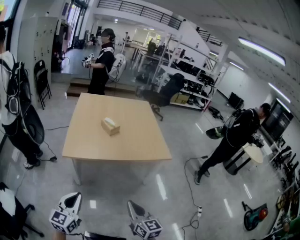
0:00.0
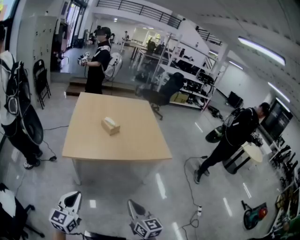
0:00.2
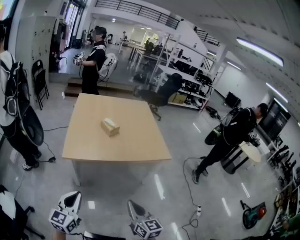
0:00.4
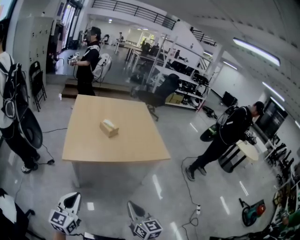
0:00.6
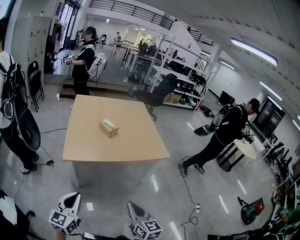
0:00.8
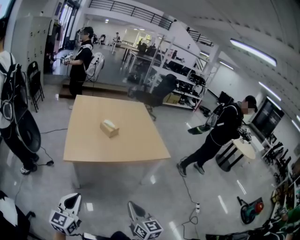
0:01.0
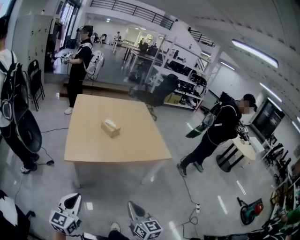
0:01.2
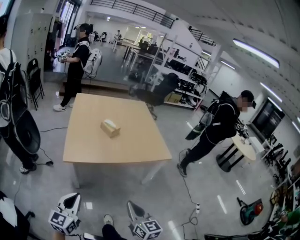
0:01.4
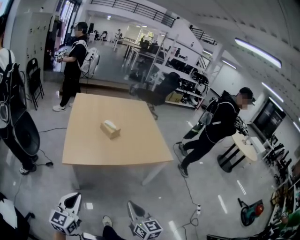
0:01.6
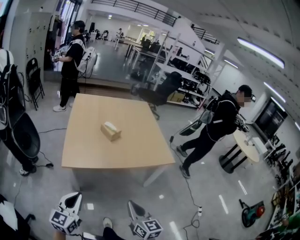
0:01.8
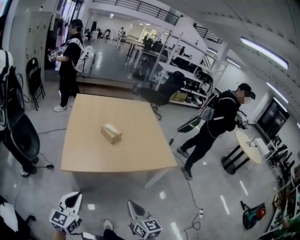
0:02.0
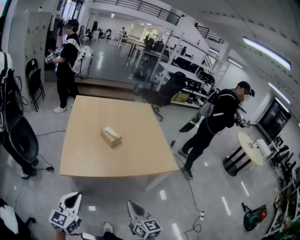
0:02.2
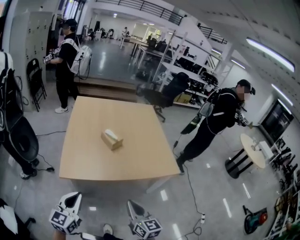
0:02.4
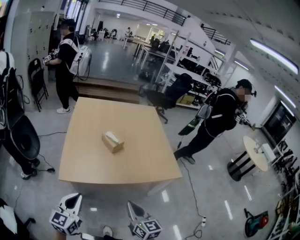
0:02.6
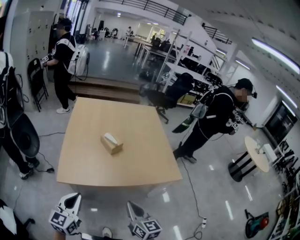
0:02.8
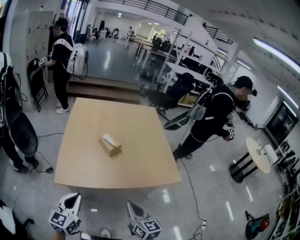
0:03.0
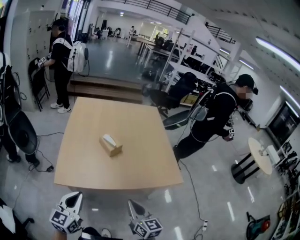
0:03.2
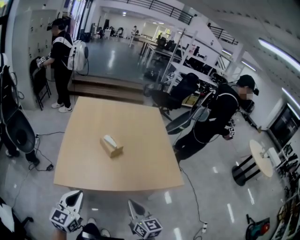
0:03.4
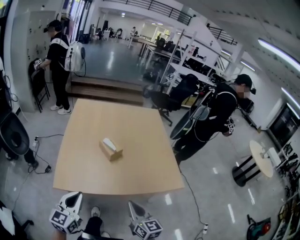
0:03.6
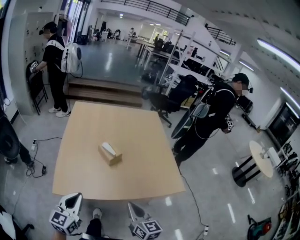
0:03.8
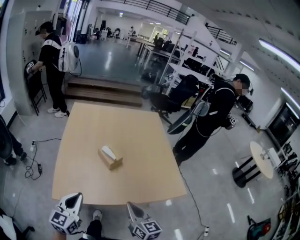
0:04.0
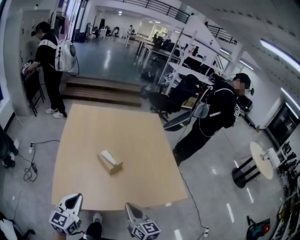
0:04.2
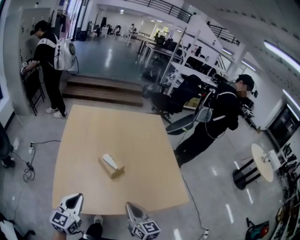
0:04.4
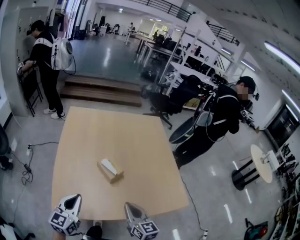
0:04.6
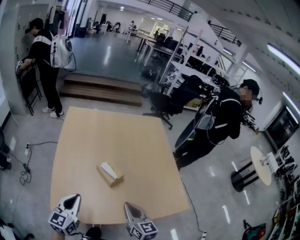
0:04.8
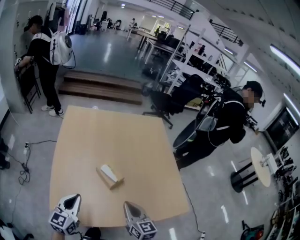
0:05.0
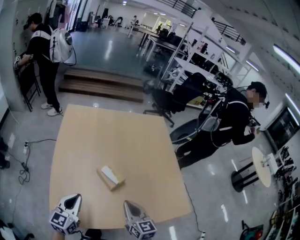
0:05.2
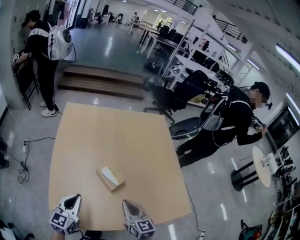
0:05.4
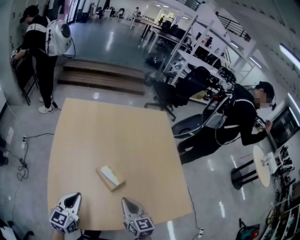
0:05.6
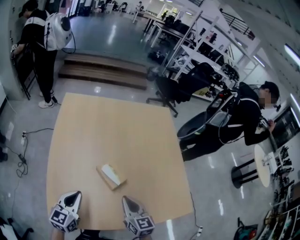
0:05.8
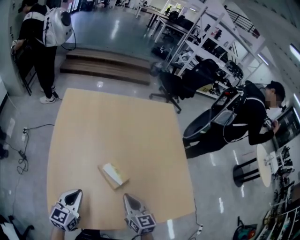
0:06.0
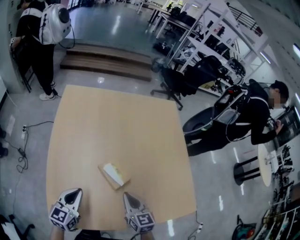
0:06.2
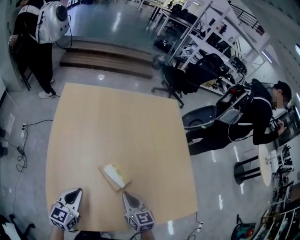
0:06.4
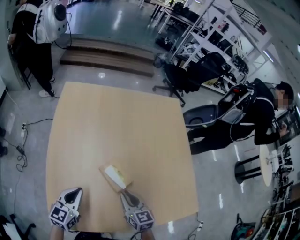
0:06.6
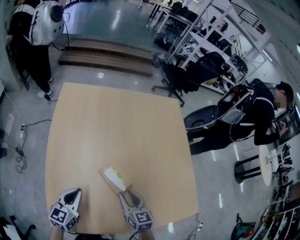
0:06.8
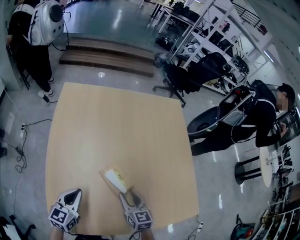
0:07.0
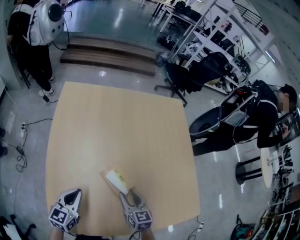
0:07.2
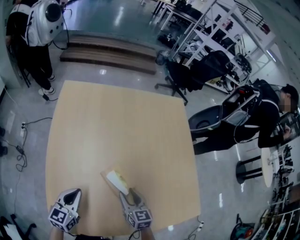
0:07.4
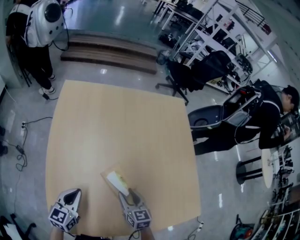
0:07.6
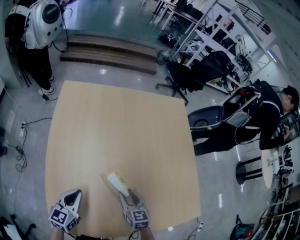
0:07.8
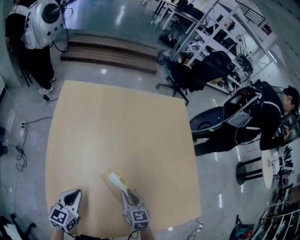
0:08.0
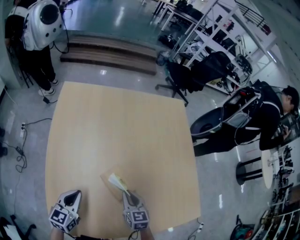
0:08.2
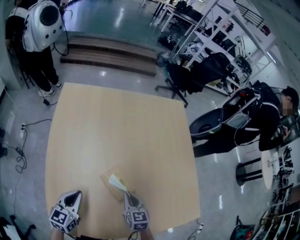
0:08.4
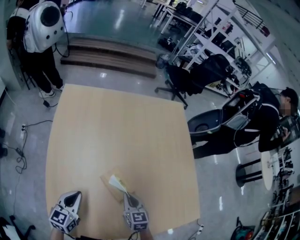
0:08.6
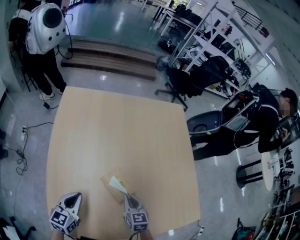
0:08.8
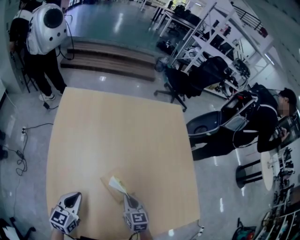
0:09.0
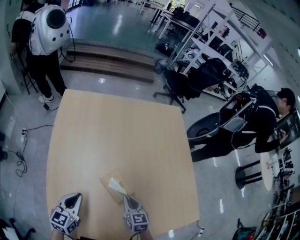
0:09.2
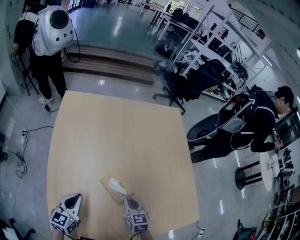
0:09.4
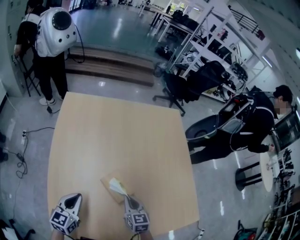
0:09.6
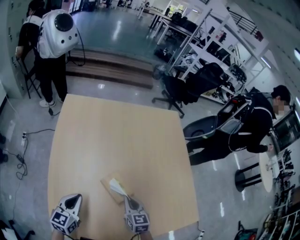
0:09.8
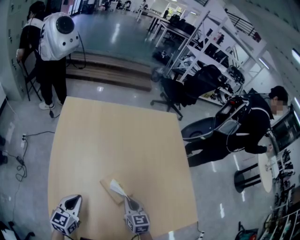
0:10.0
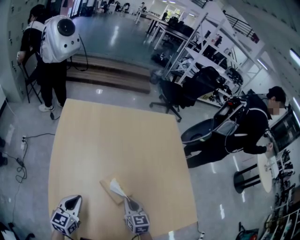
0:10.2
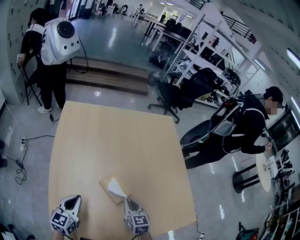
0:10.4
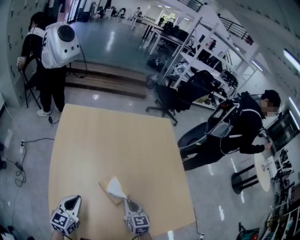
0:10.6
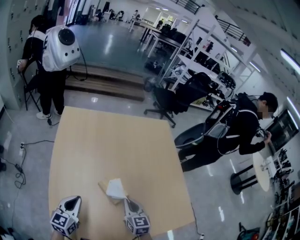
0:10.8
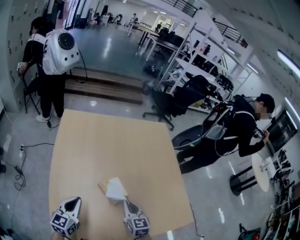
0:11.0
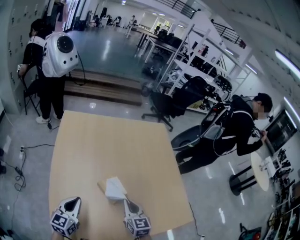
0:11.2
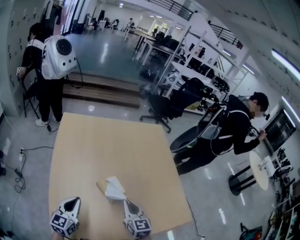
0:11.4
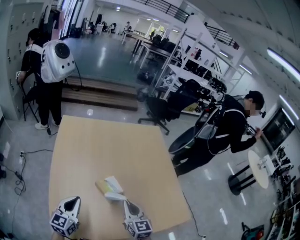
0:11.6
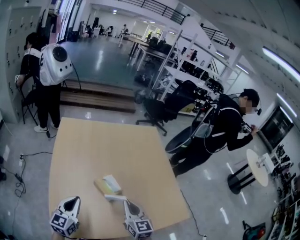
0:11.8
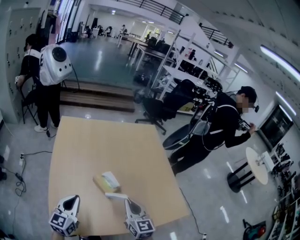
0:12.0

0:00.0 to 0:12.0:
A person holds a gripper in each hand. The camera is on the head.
0:00.0 to 0:01.6: The right gripper heads to the left, covering approximately 5 cm. Meanwhile the left gripper shifts approximately 10 cm to the left and forward.
0:01.6 to 0:03.0: Both grippers move forward, some 20 cm.
0:03.0 to 0:04.4: The two grippers go approximately 20 cm forward.
0:04.4 to 0:06.0: The left gripper heads forward and downward, covering roughly 20 cm, while the right gripper is displaced forward by about 20 cm.
0:06.0 to 0:07.6: Both grippers move downward and forward, approximately 10 cm. The right gripper opens its fingers.
0:07.6 to 0:09.0: The right gripper closes its fingers.
0:09.0 to 0:10.4: The grippers make only small movements.
0:10.4 to 0:12.0: The two grippers go some 15 cm upward and backward.

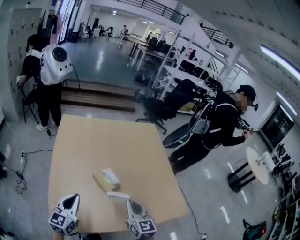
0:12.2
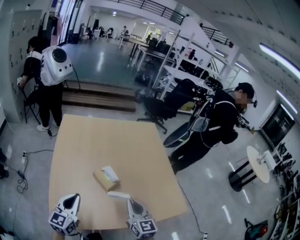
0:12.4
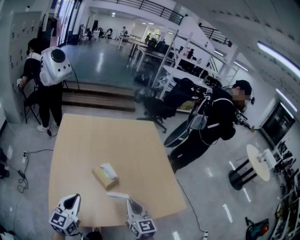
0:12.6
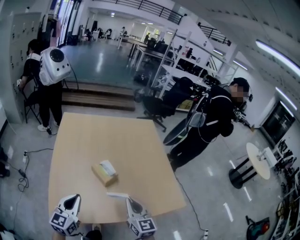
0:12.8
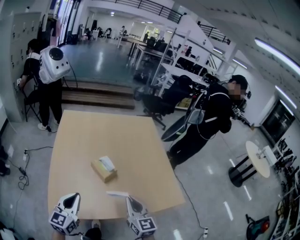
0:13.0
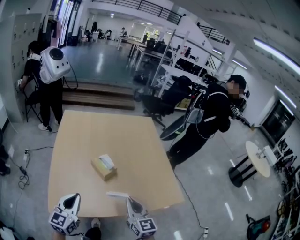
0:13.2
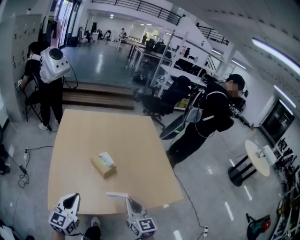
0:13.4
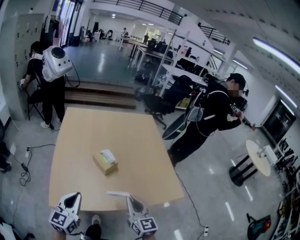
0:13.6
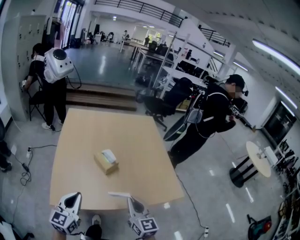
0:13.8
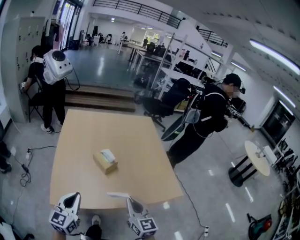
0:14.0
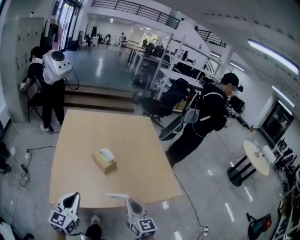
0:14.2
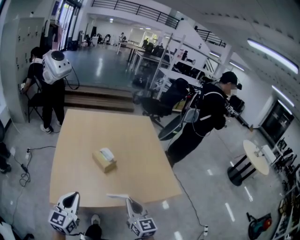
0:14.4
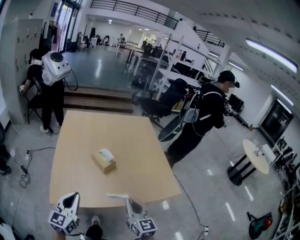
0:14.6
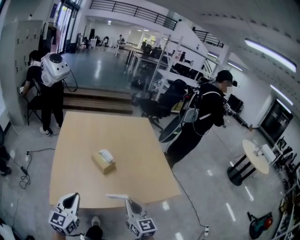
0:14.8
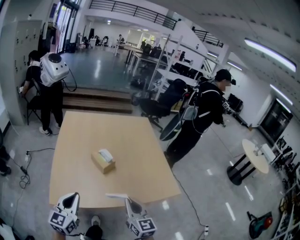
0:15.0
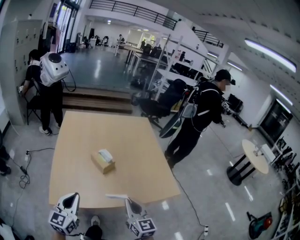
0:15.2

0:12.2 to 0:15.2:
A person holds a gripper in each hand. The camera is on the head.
0:12.2 to 0:13.8: The grippers both shift backward by about 15 cm.
0:13.8 to 0:15.2: The grippers stay close to where they were, moving slightly.

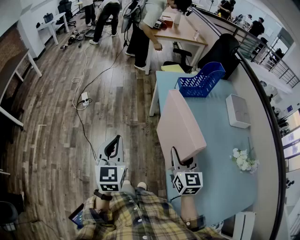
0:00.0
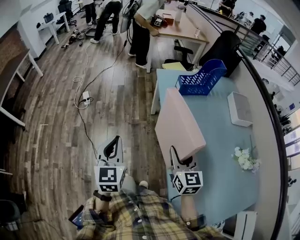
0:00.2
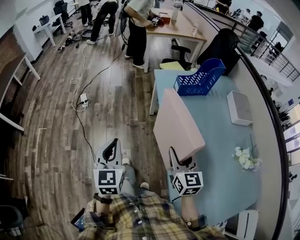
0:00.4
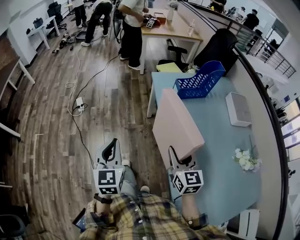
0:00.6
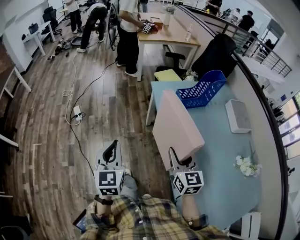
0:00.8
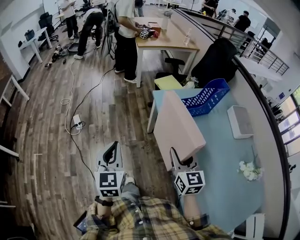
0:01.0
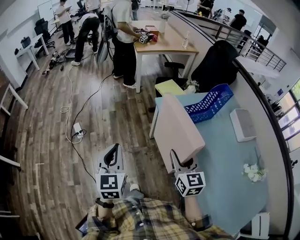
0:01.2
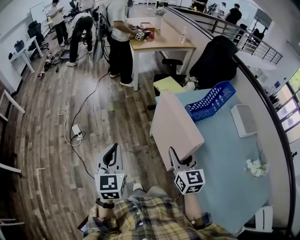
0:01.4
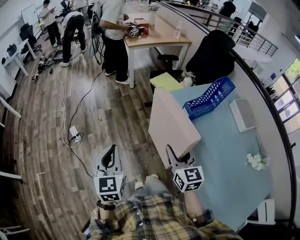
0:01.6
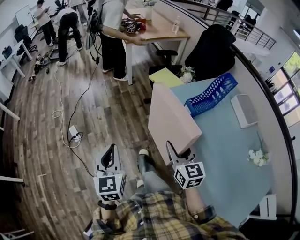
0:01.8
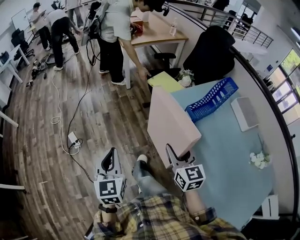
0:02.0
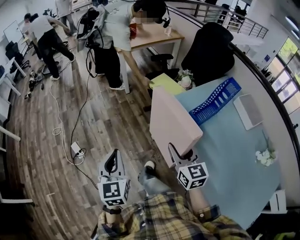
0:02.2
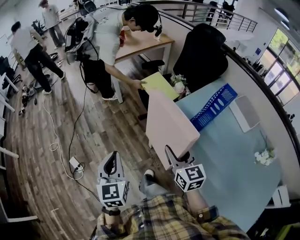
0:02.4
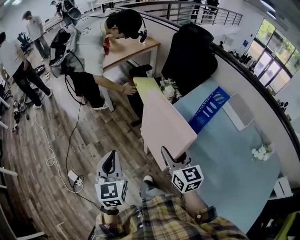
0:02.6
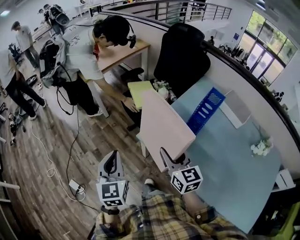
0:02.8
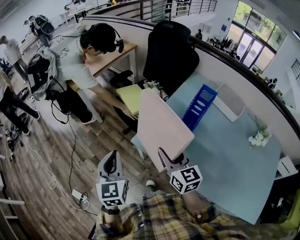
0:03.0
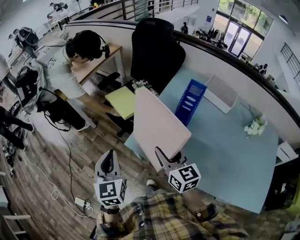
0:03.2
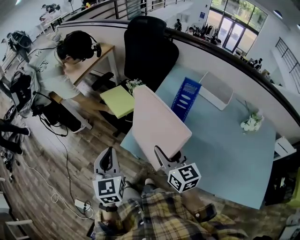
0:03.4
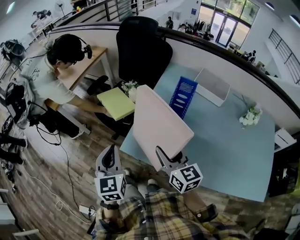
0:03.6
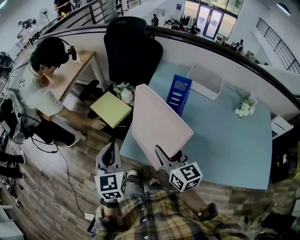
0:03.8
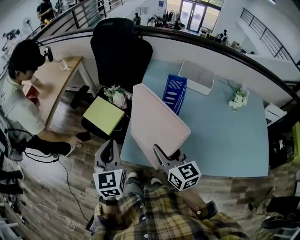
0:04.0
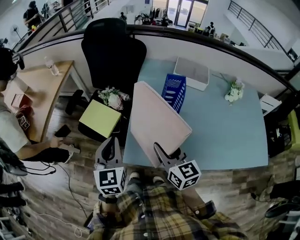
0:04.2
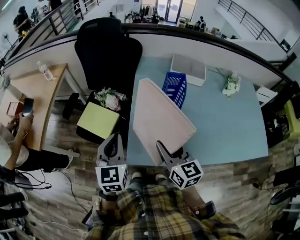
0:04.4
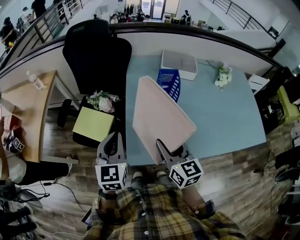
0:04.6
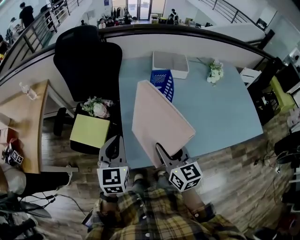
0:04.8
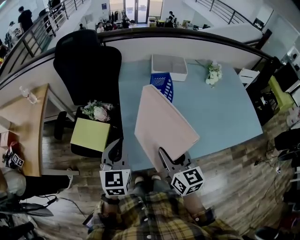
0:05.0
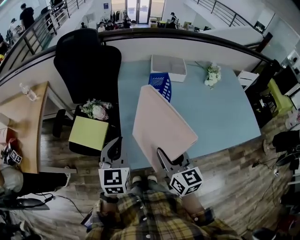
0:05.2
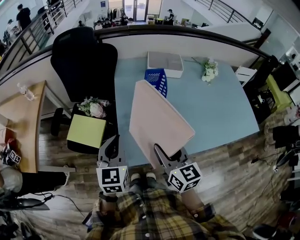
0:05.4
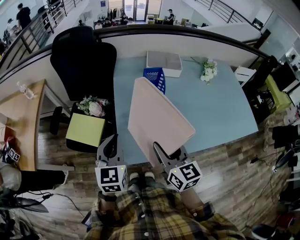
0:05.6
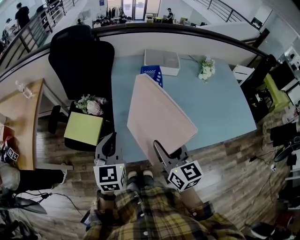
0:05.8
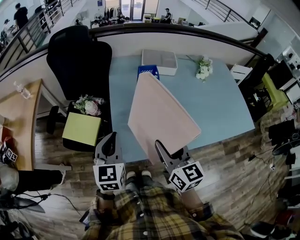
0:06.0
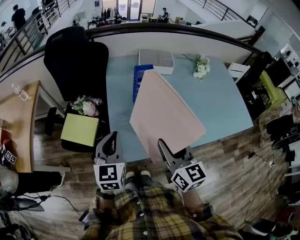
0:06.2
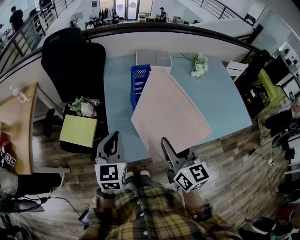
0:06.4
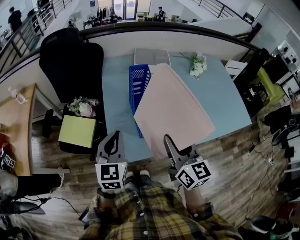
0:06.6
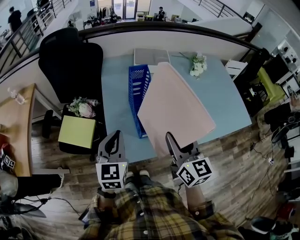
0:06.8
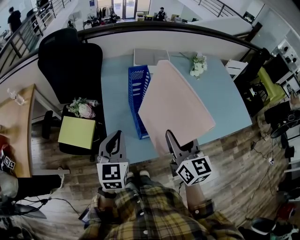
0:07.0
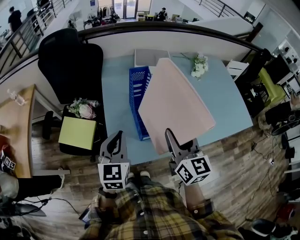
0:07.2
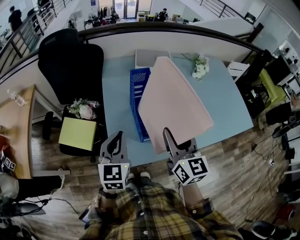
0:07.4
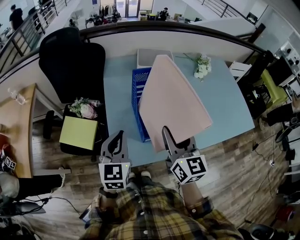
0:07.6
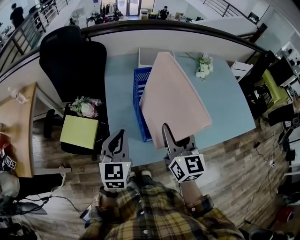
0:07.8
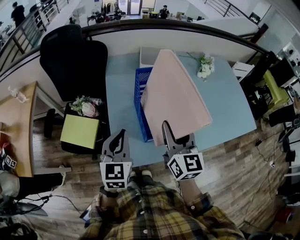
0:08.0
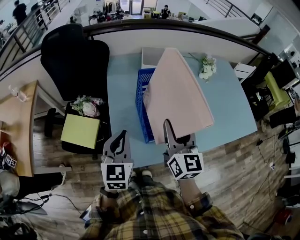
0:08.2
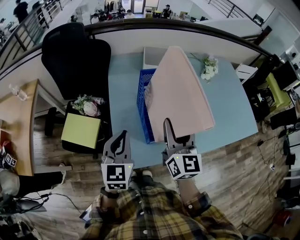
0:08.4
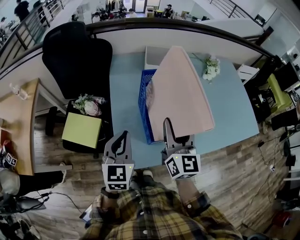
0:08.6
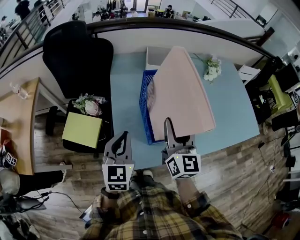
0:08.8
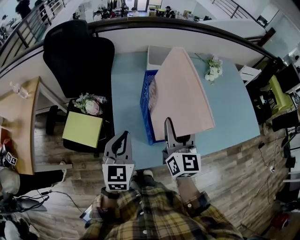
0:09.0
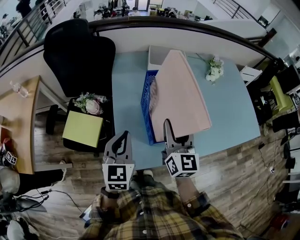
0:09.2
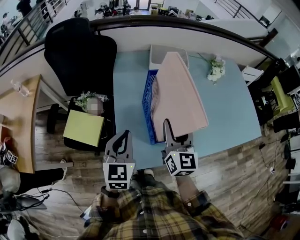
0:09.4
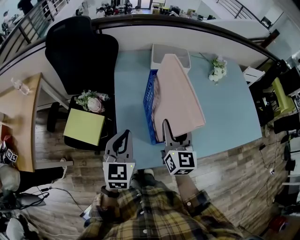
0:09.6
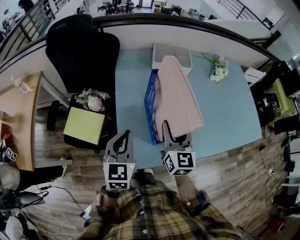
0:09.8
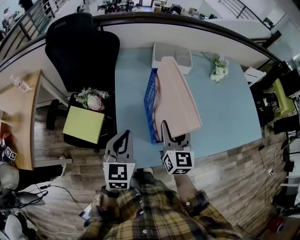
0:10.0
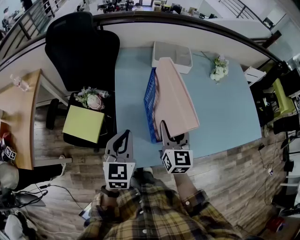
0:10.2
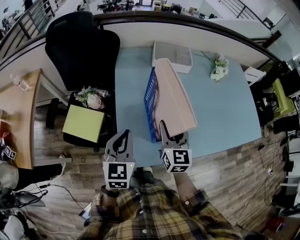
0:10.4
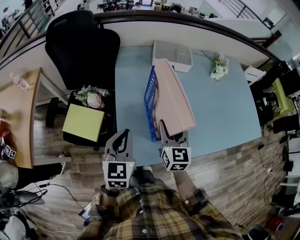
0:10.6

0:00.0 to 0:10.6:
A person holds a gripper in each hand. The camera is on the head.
0:00.0 to 0:01.6: The right gripper moves forward and to the left, some 30 cm, while the left gripper moves forward, some 30 cm.
0:01.6 to 0:03.0: Both grippers move forward, roughly 30 cm. The right gripper swivels approximately 20 degrees. Meanwhile the left gripper swivels approximately 30 degrees.
0:03.0 to 0:04.6: The right gripper ends up roughly 5 cm from where it was, and rotates roughly 40 degrees; the left gripper shifts by some 25 cm, and swivels some 50 degrees.
0:04.6 to 0:06.0: The right gripper goes about 5 cm backward; the left gripper ends up roughly 5 cm from where it was.
0:06.0 to 0:07.6: The right gripper moves forward, approximately 5 cm. Meanwhile the left gripper ends up approximately 5 cm from where it was.
0:07.6 to 0:09.0: The right gripper is displaced forward by approximately 5 cm.
0:09.0 to 0:10.6: The right gripper moves downward, approximately 10 cm.
